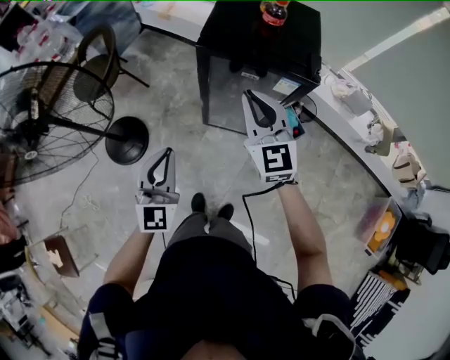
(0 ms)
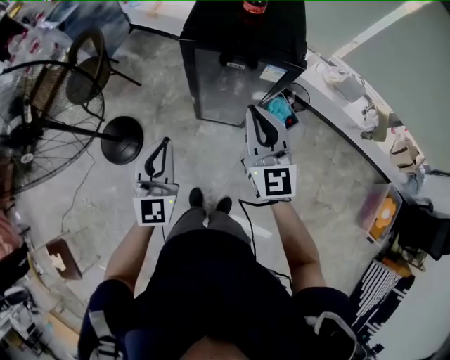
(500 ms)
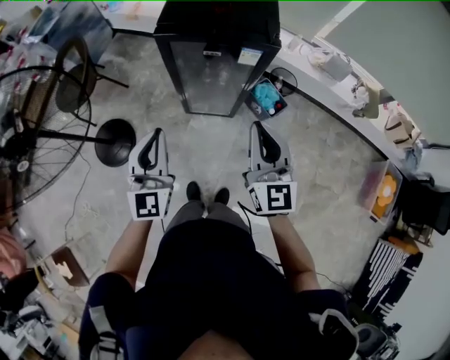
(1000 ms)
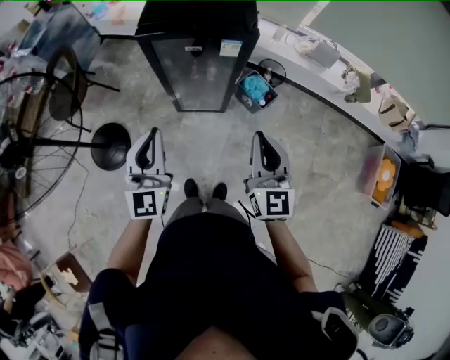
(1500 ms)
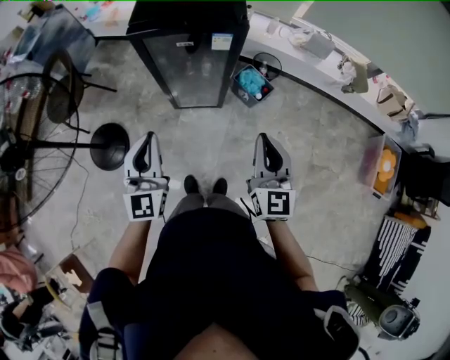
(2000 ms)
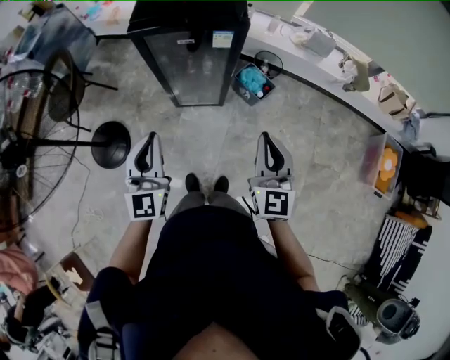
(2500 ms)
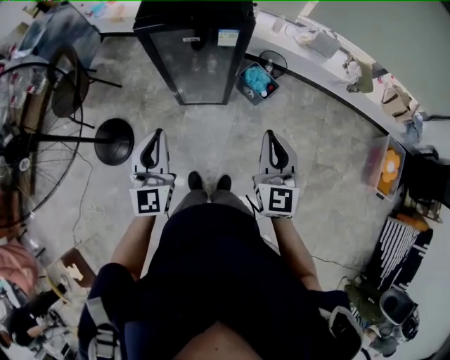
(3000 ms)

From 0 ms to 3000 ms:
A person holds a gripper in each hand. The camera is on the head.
From 0 ms to 1500 ms: The right gripper shifts about 25 cm backward and to the right, and rotates approximately 30 degrees; the left gripper moves to the right and upward, approximately 10 cm.
From 1500 ms to 3000 ms: The right gripper moves about 5 cm.

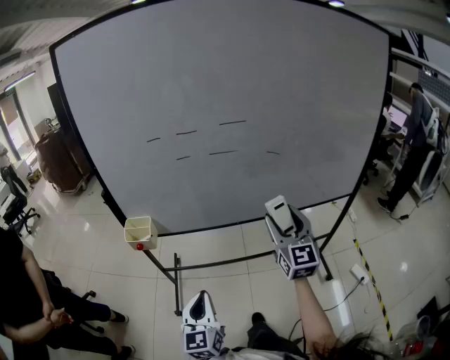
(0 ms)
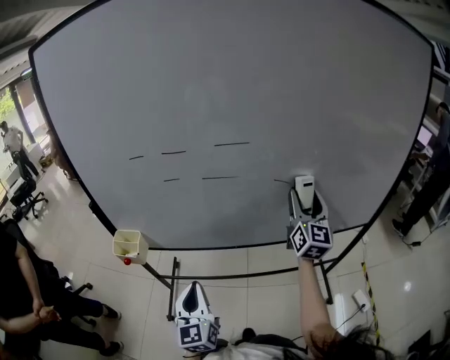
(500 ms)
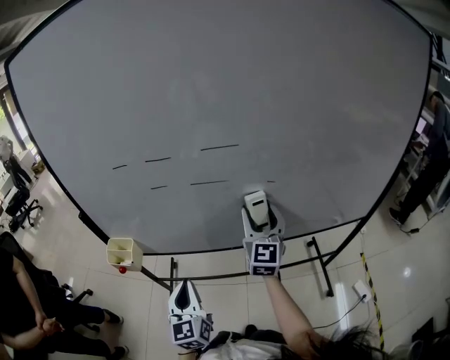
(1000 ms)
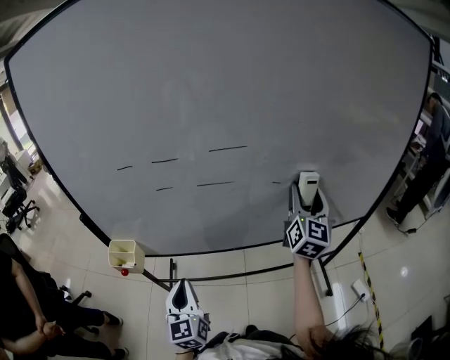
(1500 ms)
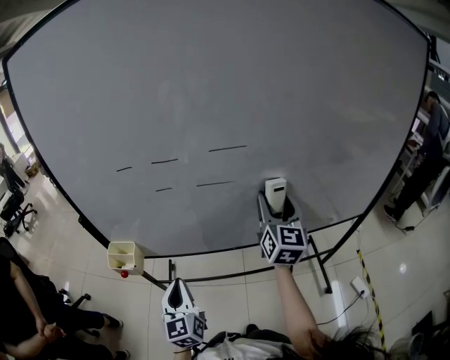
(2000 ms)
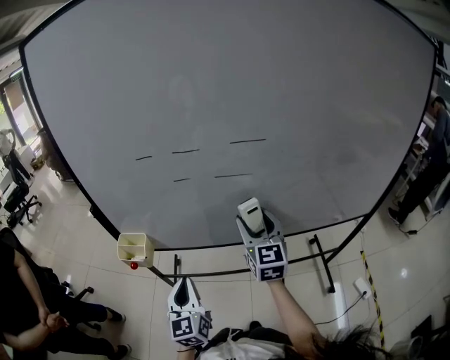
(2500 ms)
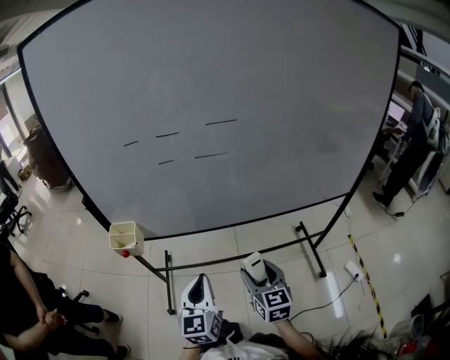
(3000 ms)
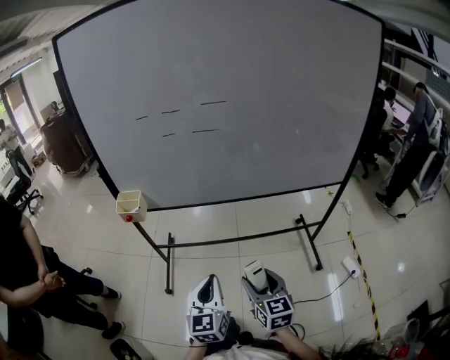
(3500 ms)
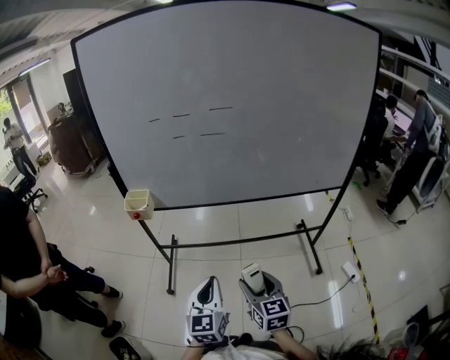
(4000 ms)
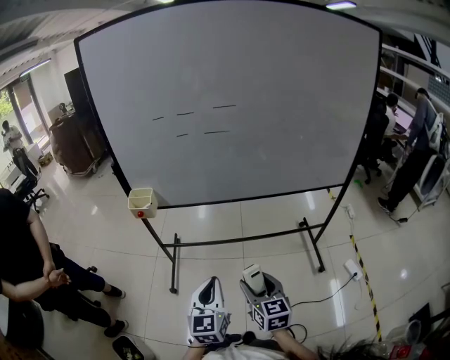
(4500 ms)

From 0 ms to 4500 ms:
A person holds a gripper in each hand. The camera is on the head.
From 0 ms to 2000 ms: The two grippers go approximately 20 cm forward.
From 2000 ms to 4500 ms: The left gripper goes roughly 30 cm backward. The right gripper travels backward and downward by roughly 50 cm, and changes its angle by some 30 degrees.

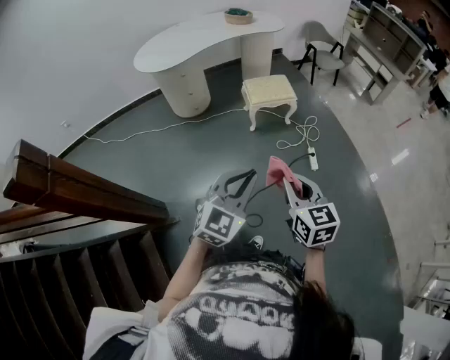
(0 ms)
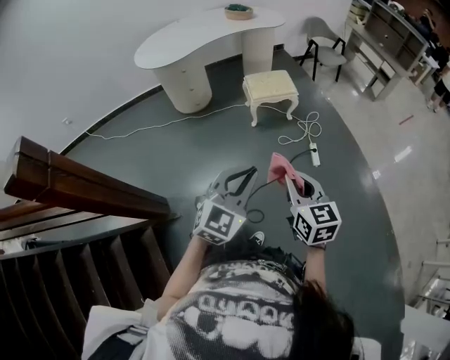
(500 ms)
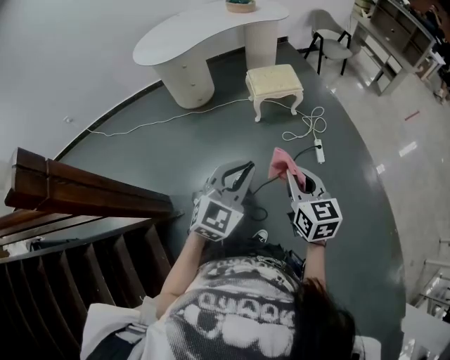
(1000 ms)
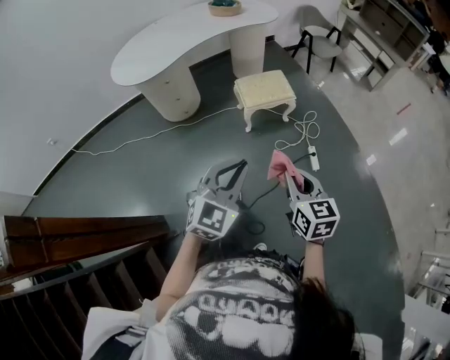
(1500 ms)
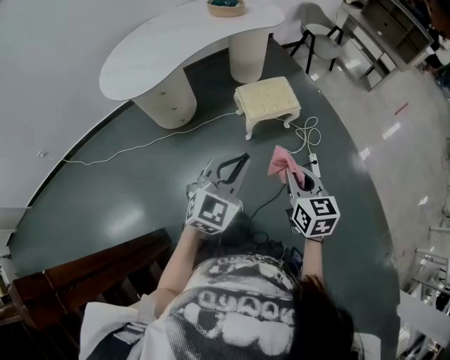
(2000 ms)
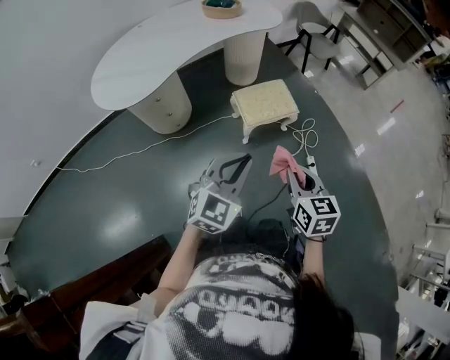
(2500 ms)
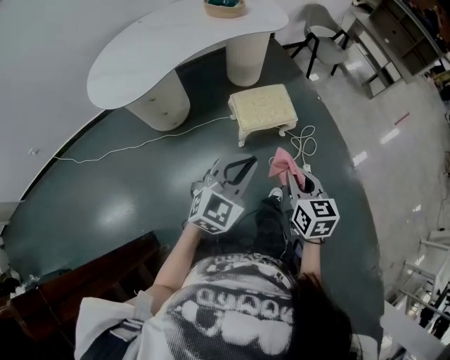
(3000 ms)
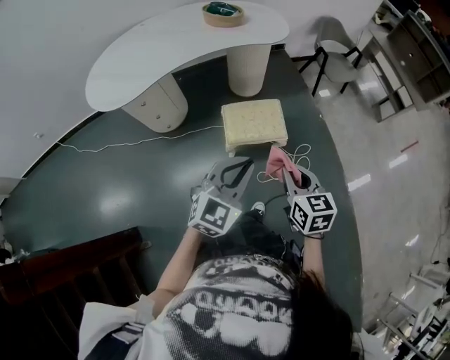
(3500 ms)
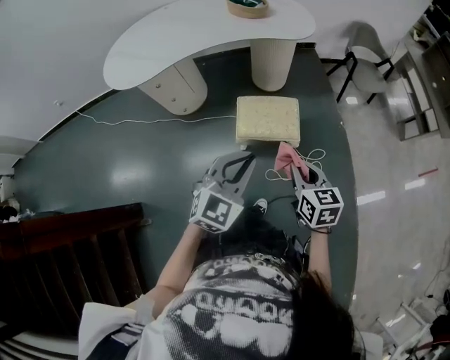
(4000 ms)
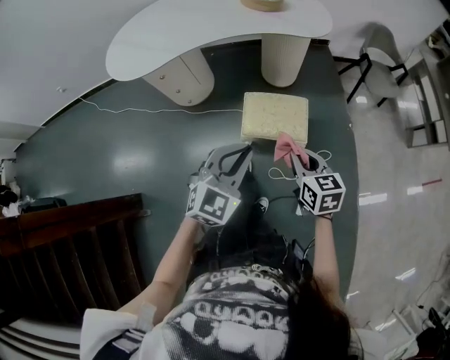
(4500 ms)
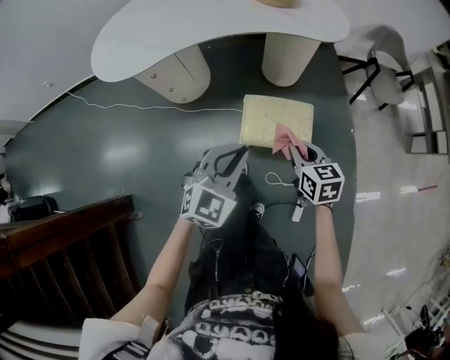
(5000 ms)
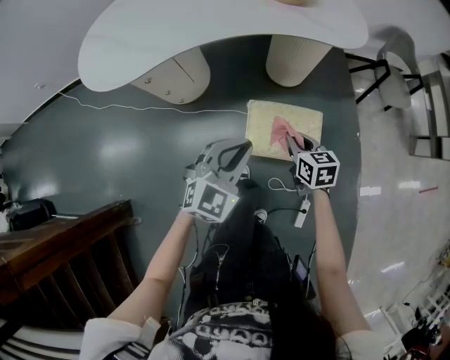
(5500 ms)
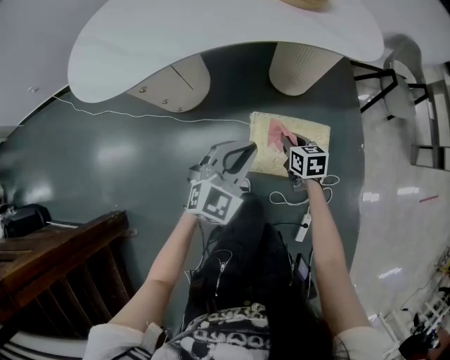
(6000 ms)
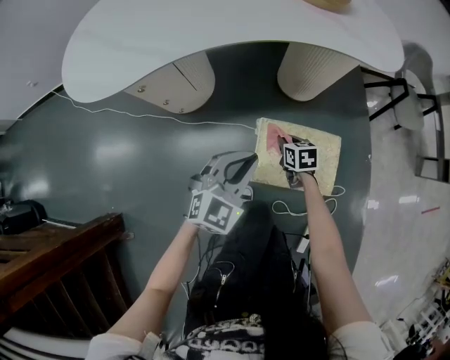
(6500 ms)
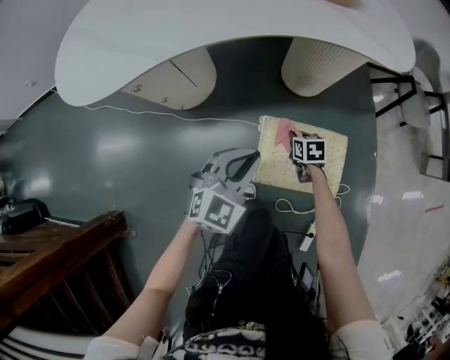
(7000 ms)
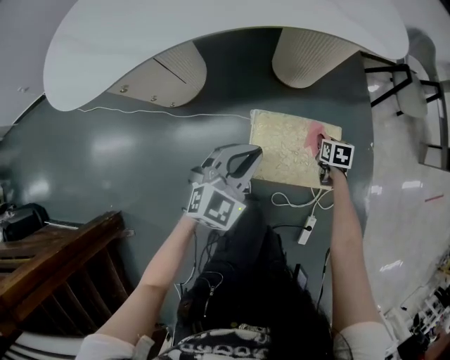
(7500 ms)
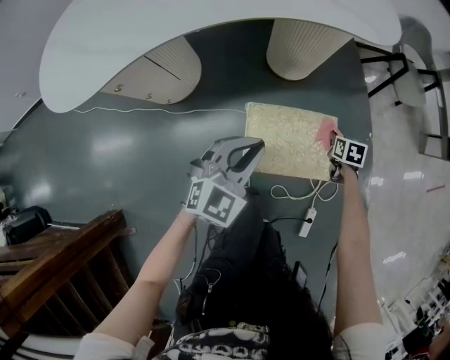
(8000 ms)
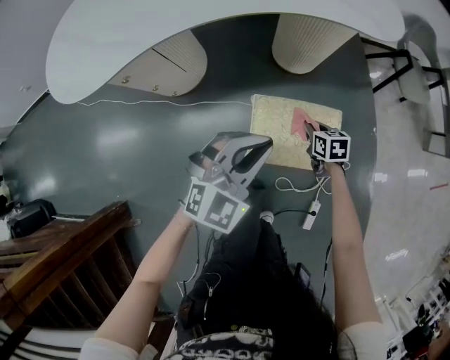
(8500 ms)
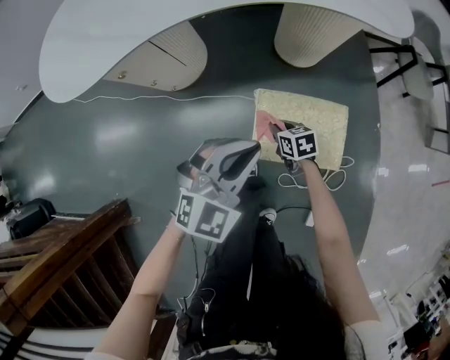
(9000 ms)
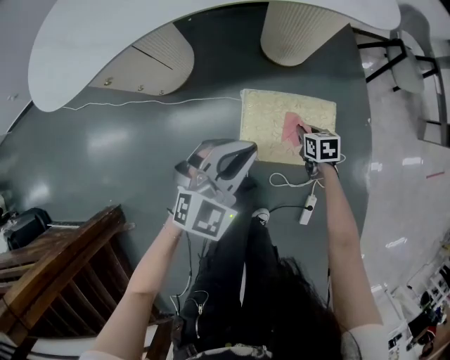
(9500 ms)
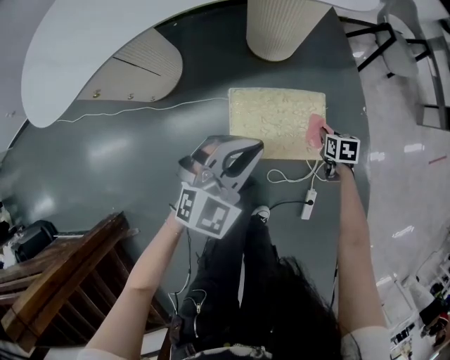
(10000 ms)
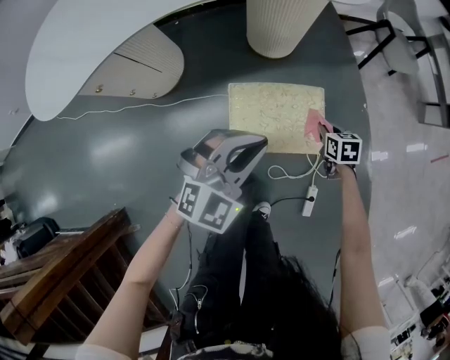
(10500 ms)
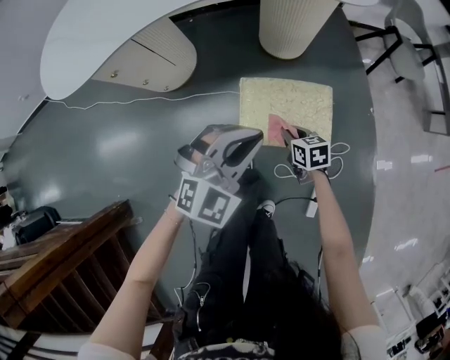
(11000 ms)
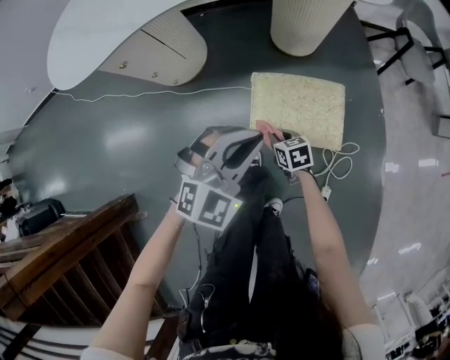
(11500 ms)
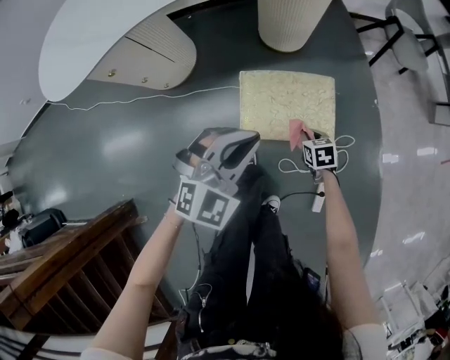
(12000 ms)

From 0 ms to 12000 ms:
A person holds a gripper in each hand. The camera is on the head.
From 0 ms to 2000 ms: Both grippers move forward, some 35 cm.
From 2000 ms to 4000 ms: Both grippers travel together forward and to the right, about 30 cm. The right gripper swivels some 20 degrees.
From 4000 ms to 6000 ms: Both grippers move forward and downward, approximately 40 cm.
From 6000 ms to 8000 ms: The right gripper shifts approximately 25 cm to the right and downward, and turns by roughly 30 degrees, while the left gripper is displaced downward by about 5 cm.
From 8000 ms to 10000 ms: The left gripper moves some 5 cm. Meanwhile the right gripper shifts some 5 cm backward, and goes to the left and returns, approximately 25 cm each way.
From 10000 ms to 12000 ms: The left gripper goes roughly 5 cm backward. Meanwhile the right gripper heads to the left and backward, covering about 15 cm.

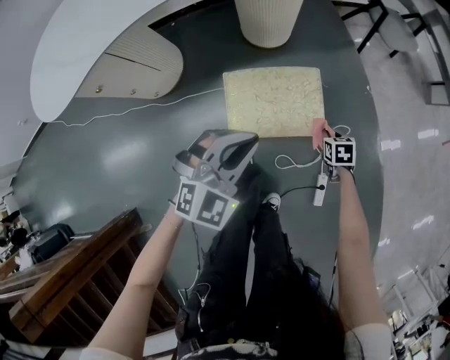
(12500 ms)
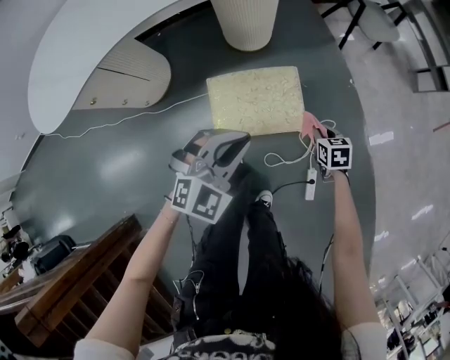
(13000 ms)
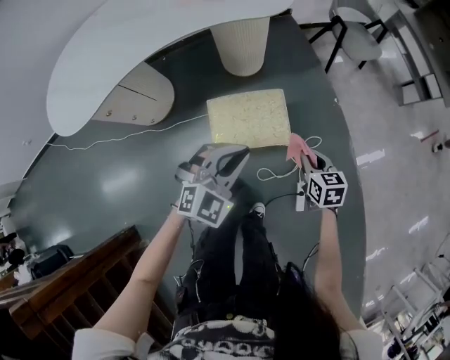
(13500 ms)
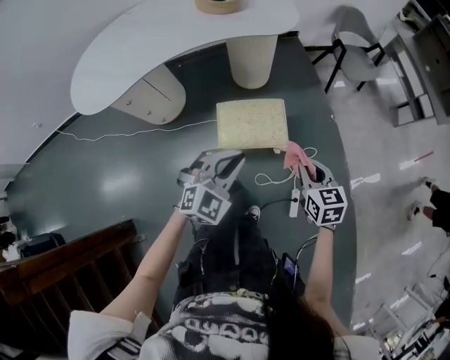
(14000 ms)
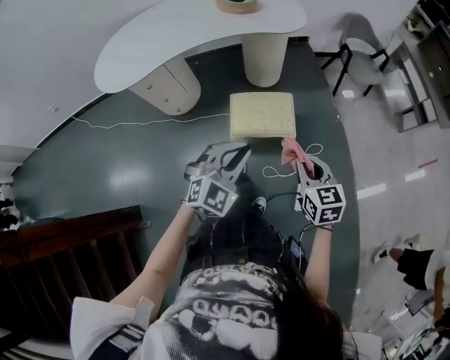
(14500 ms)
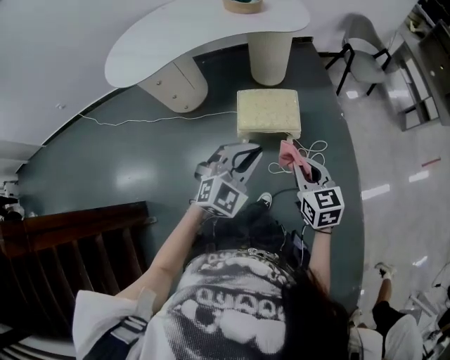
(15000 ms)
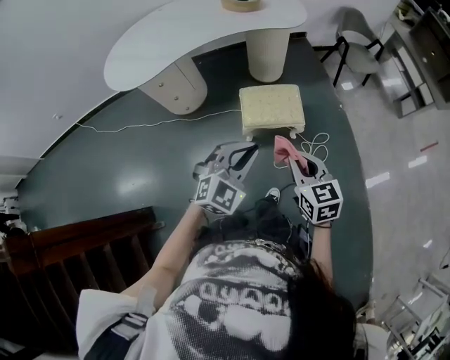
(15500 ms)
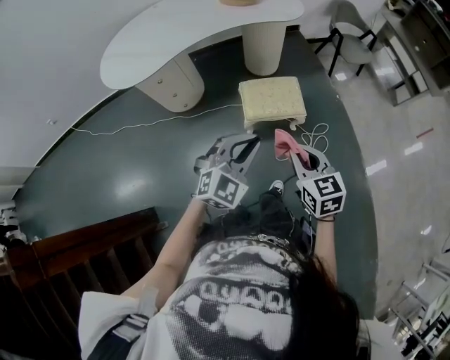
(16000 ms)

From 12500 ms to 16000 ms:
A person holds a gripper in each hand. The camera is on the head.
From 12500 ms to 14500 ms: The left gripper travels upward and backward by roughly 30 cm, while the right gripper moves upward and backward, roughly 50 cm, and tips its fingers upward by approximately 40 degrees.
From 14500 ms to 16000 ms: The two grippers go about 15 cm to the left and backward.

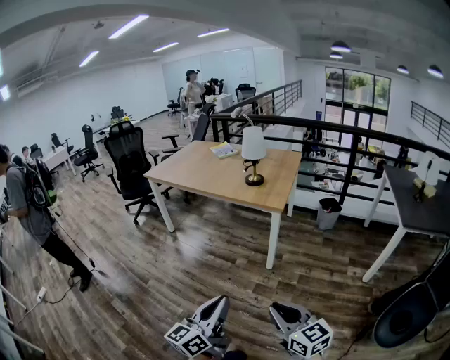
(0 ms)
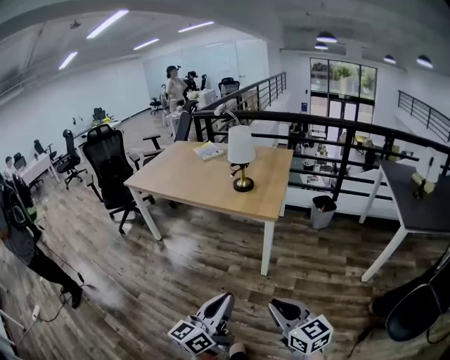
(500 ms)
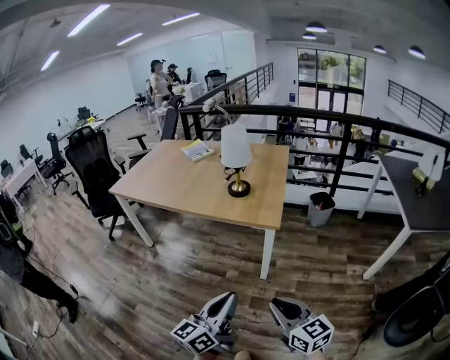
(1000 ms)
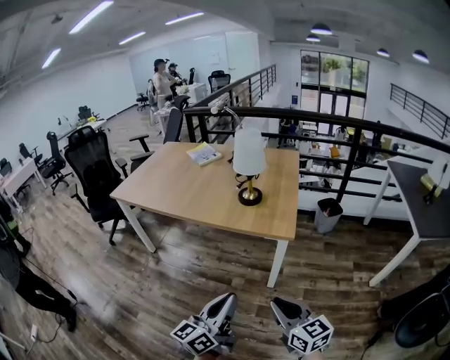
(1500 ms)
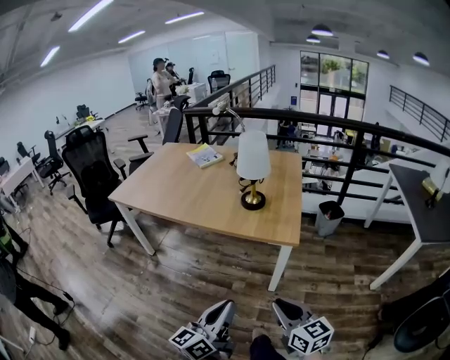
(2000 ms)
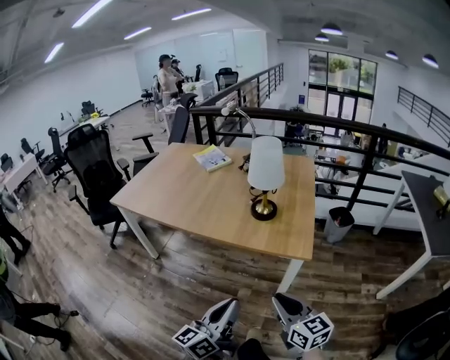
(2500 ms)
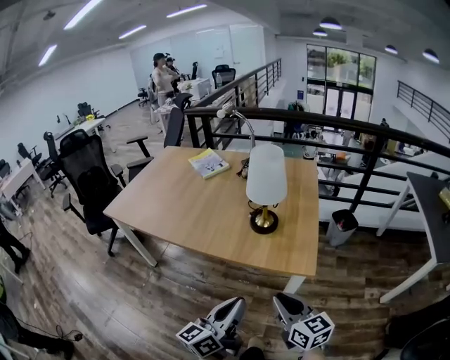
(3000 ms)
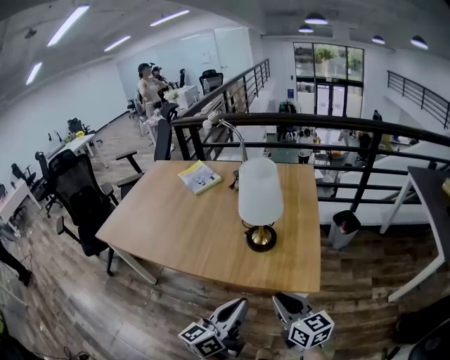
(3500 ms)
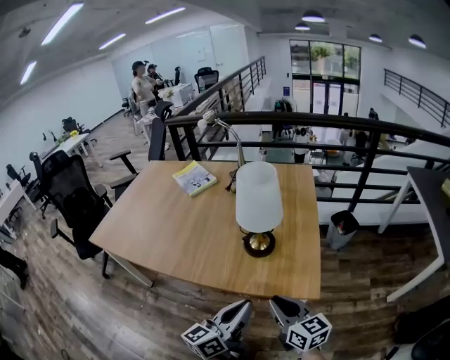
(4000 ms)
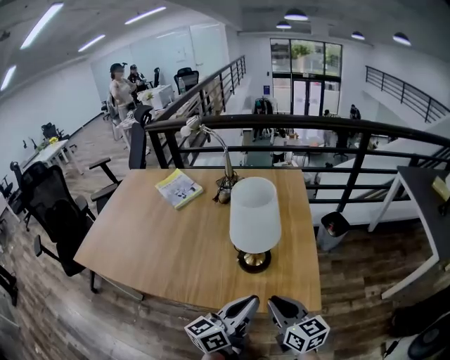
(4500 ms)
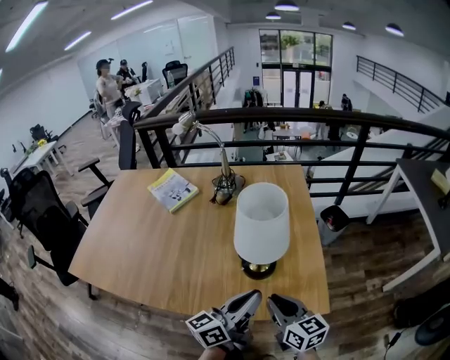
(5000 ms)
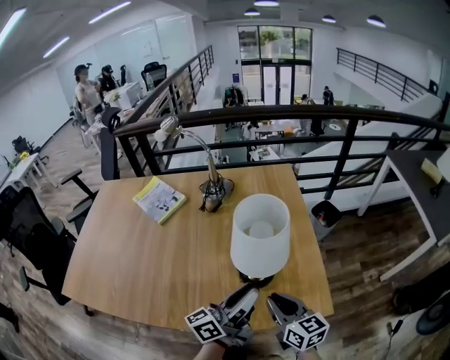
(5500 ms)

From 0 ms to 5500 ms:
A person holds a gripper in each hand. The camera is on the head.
From 0 ms to 2000 ms: Both grippers move forward, roughly 35 cm.
From 2000 ms to 3500 ms: Both grippers move forward, about 25 cm.
From 3500 ms to 5500 ms: The two grippers go about 20 cm forward. The left gripper swivels about 30 degrees, and opens its fingers.
